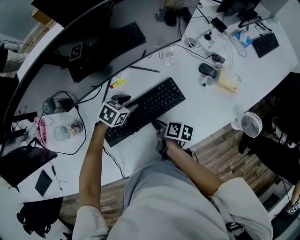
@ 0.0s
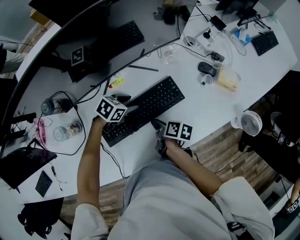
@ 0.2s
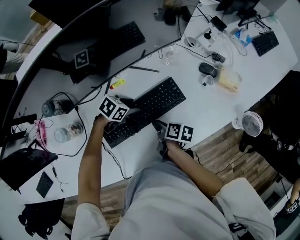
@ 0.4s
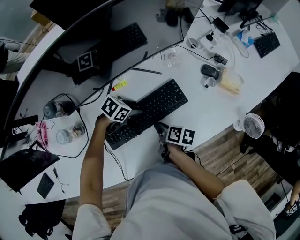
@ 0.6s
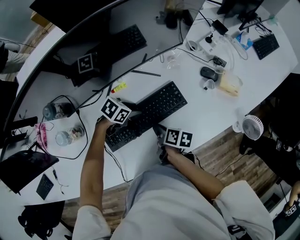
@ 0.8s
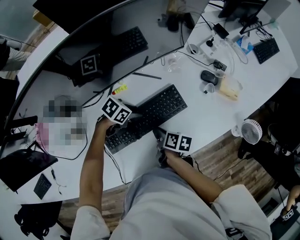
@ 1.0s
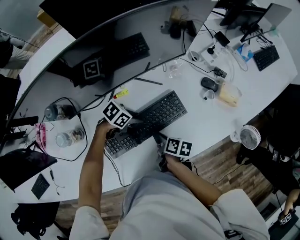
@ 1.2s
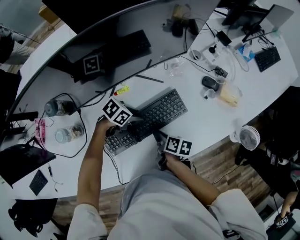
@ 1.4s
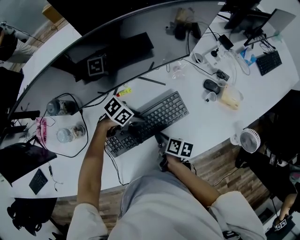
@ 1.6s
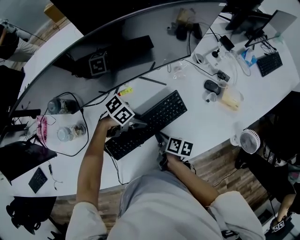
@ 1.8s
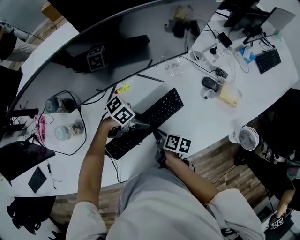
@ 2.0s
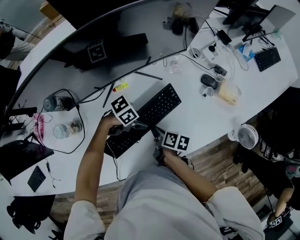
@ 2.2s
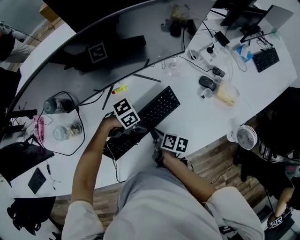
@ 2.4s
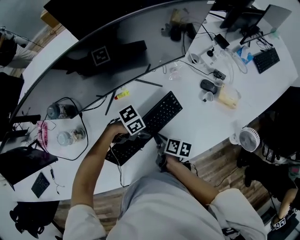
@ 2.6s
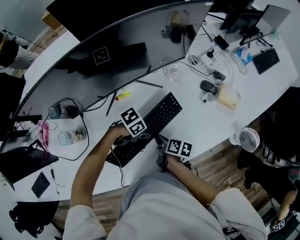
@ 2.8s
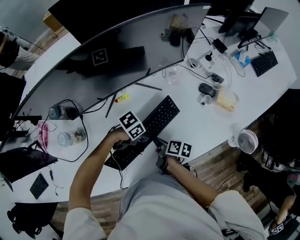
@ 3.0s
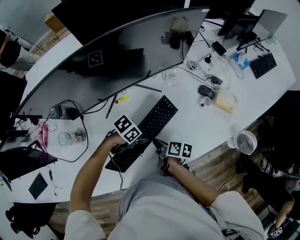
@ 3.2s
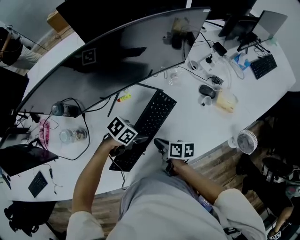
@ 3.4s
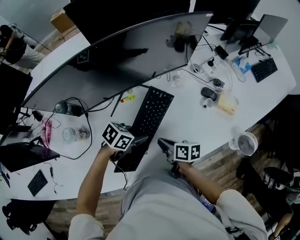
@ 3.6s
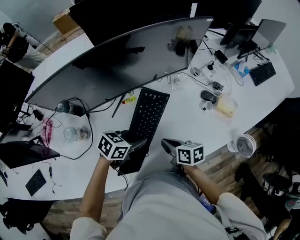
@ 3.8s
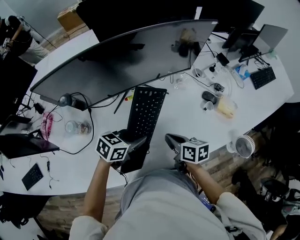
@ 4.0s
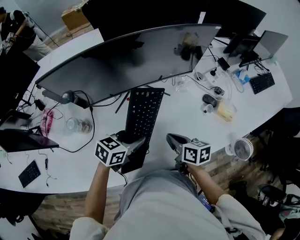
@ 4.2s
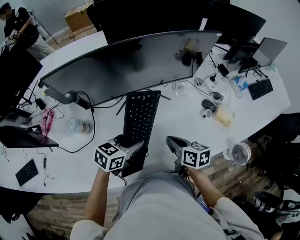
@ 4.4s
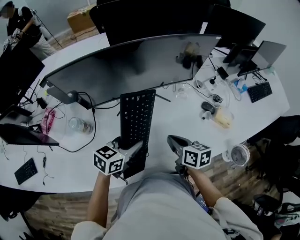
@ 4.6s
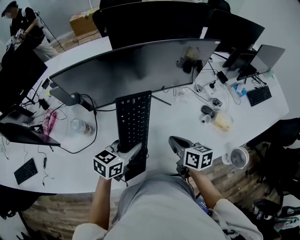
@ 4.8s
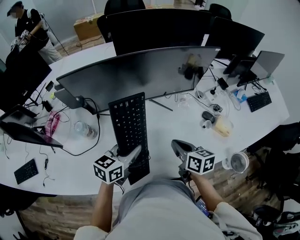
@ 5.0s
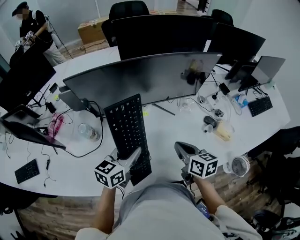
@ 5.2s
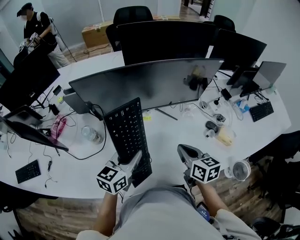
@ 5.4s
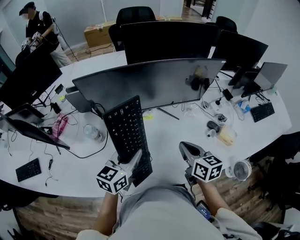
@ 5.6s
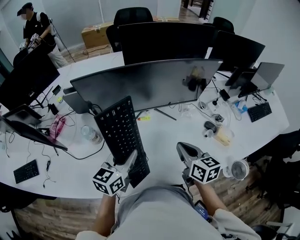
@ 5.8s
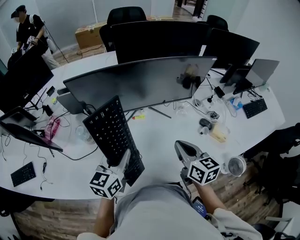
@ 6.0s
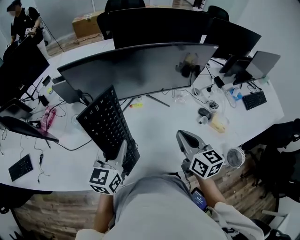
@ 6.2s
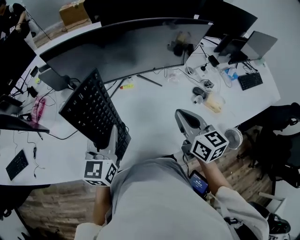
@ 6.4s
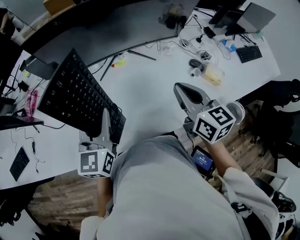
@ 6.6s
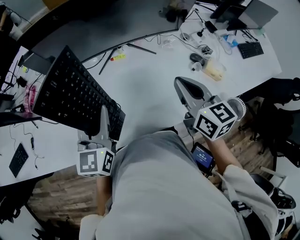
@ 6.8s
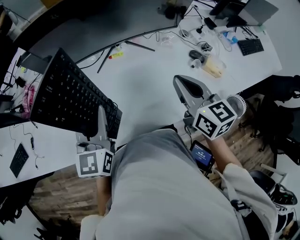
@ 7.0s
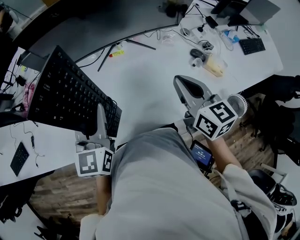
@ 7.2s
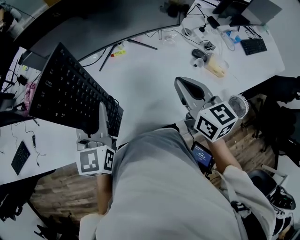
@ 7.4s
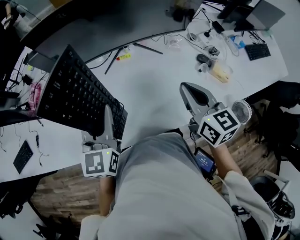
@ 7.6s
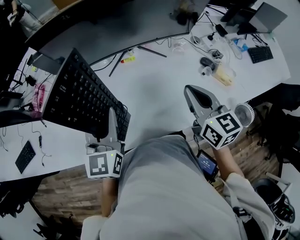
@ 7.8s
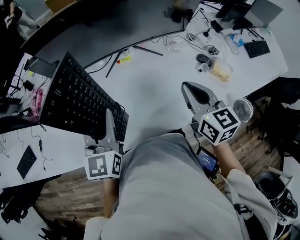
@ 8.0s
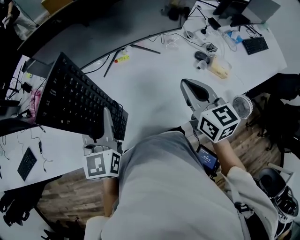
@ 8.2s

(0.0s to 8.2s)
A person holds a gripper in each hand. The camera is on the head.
0.0s - 1.6s: The left gripper changes its angle by approximately 30 degrees.
1.6s - 3.2s: The left gripper shifts by roughly 10 cm.
3.2s - 5.0s: The two grippers go some 20 cm upward. The right gripper rolls counterclockwise, seen from behind, by approximately 40 degrees. The left gripper changes its angle by approximately 70 degrees.
5.0s - 6.6s: The right gripper is displaced upward by some 10 cm, and rotates roughly 20 degrees. Meanwhile the left gripper shifts approximately 10 cm to the left and upward, and turns by roughly 30 degrees.
6.6s - 8.2s: The grippers move only a little.

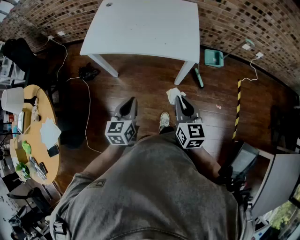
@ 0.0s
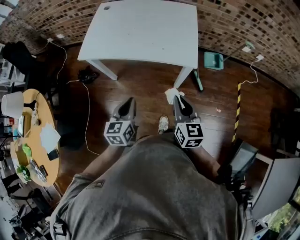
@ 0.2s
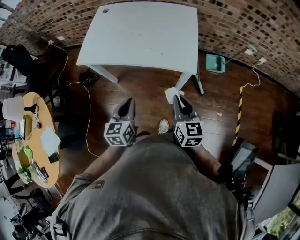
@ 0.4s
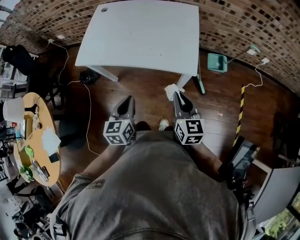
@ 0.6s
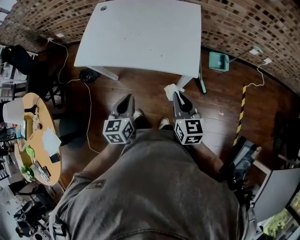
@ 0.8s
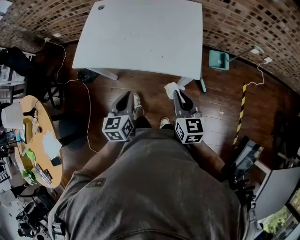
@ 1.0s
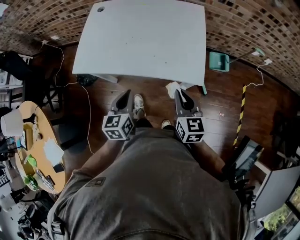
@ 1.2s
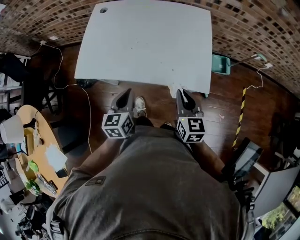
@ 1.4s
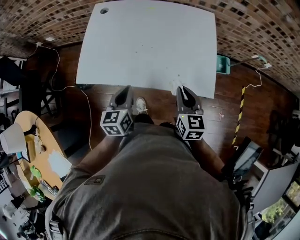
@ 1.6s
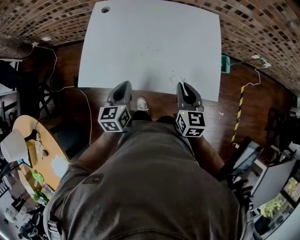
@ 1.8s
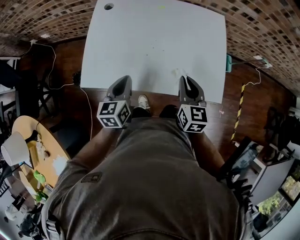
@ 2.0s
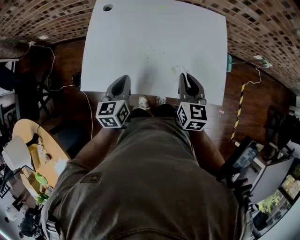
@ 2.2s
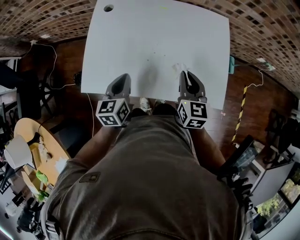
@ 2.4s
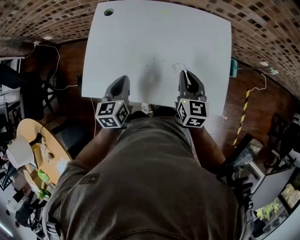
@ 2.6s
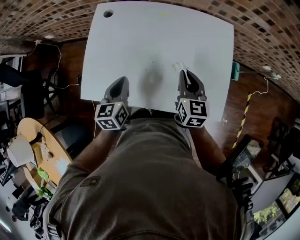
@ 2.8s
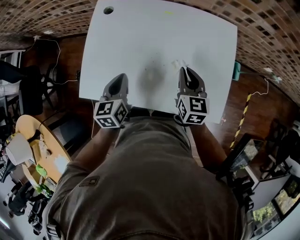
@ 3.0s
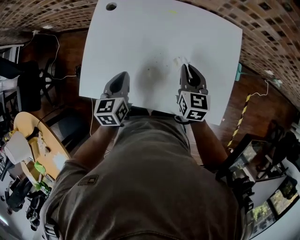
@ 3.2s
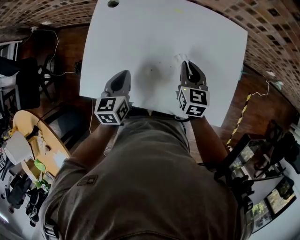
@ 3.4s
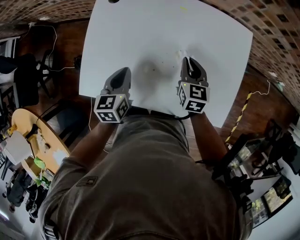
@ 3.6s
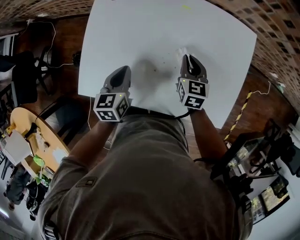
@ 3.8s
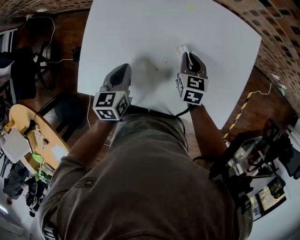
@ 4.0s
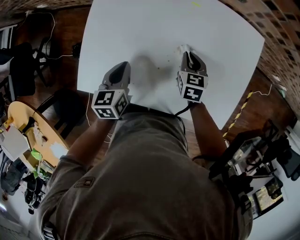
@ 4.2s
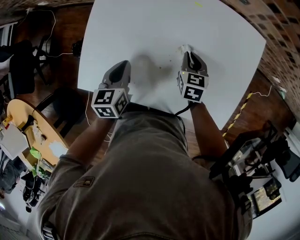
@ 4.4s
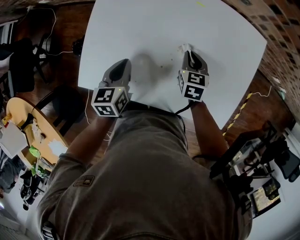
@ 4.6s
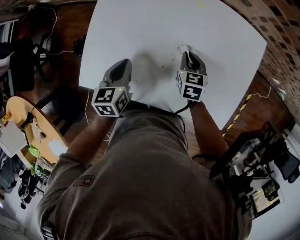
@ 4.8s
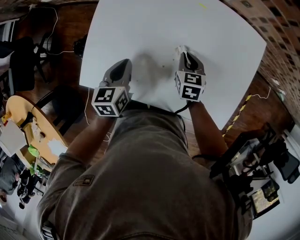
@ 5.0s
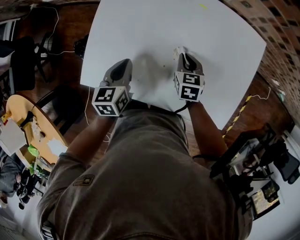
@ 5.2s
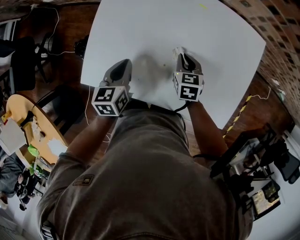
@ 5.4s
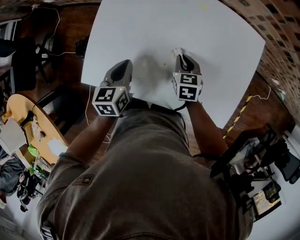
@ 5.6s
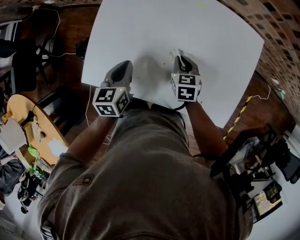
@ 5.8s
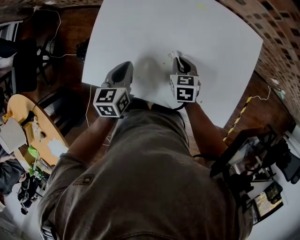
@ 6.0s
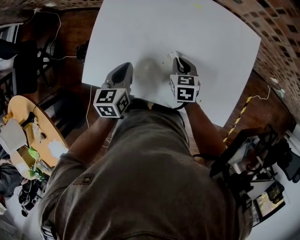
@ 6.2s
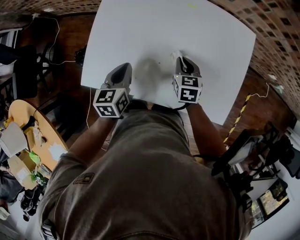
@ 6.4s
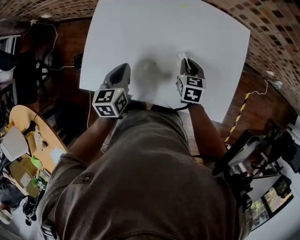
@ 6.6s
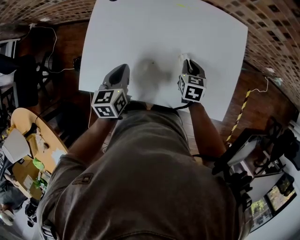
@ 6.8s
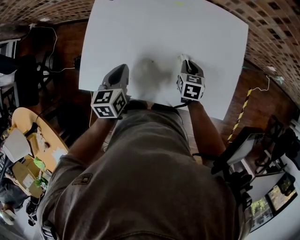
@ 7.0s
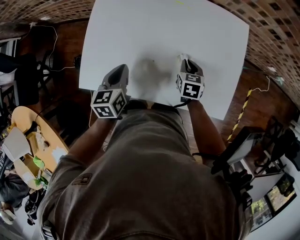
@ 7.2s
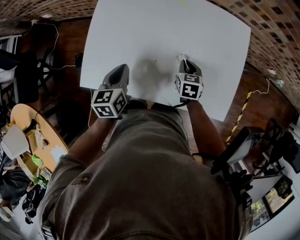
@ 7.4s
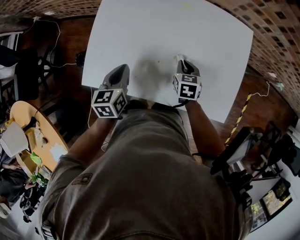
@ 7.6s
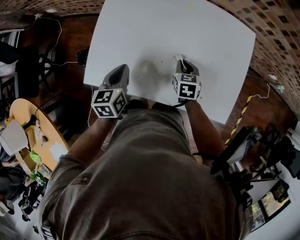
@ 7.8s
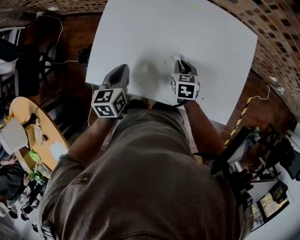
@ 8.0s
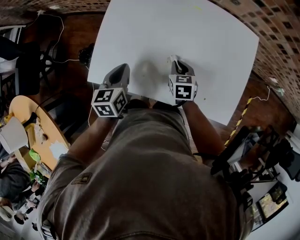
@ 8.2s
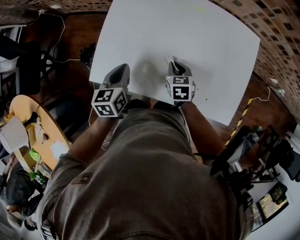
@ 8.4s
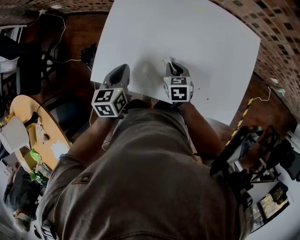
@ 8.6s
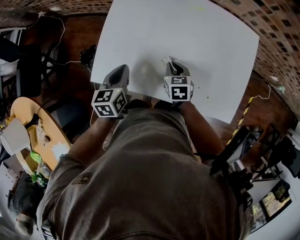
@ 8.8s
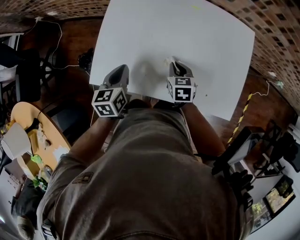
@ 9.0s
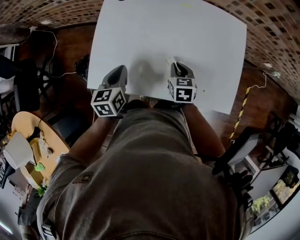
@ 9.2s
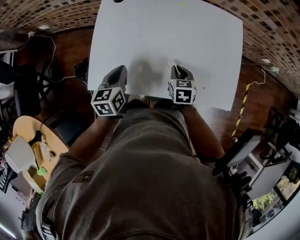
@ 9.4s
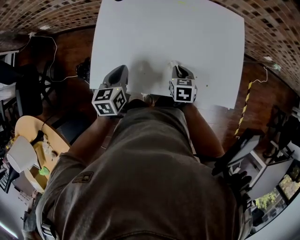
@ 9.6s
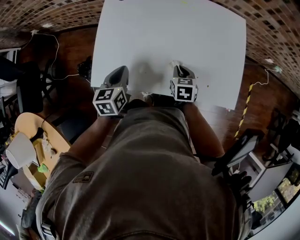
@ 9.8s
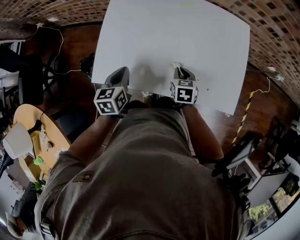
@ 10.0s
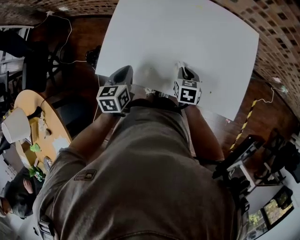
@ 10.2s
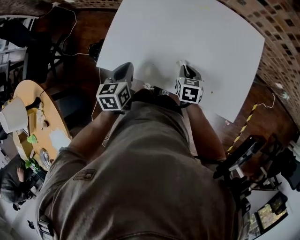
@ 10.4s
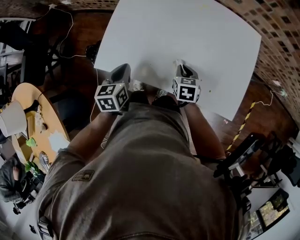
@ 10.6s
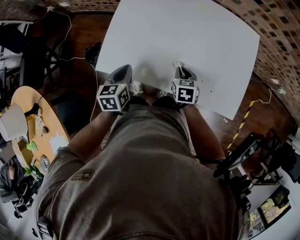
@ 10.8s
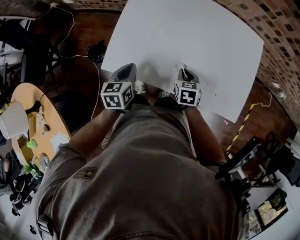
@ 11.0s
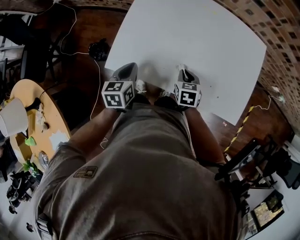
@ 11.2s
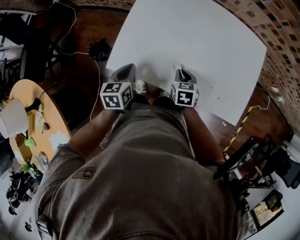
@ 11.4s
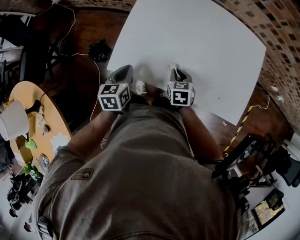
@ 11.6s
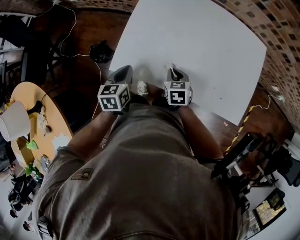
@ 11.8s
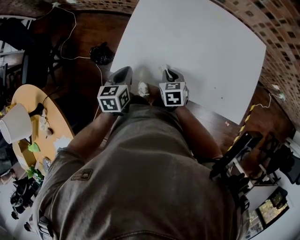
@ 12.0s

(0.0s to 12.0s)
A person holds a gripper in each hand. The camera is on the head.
0.0s - 1.6s: Both grippers travel together forward, about 25 cm.
1.6s - 3.0s: The right gripper moves forward, approximately 20 cm; the left gripper goes about 15 cm forward and to the left.
3.0s - 4.4s: The right gripper goes roughly 15 cm downward and forward, and changes its angle by approximately 20 degrees. Meanwhile the left gripper moves downward, roughly 5 cm.
4.4s - 6.0s: The right gripper goes approximately 5 cm to the left and backward.
6.0s - 7.6s: The right gripper travels to the right by roughly 5 cm.
7.6s - 9.0s: The right gripper goes some 10 cm to the left.
9.0s - 10.4s: The right gripper shifts by roughly 5 cm, while the left gripper shifts about 5 cm backward.
10.4s - 12.0s: The right gripper travels to the left by approximately 15 cm, while the left gripper heads to the left, covering some 10 cm.

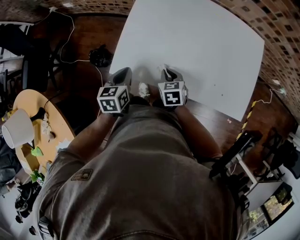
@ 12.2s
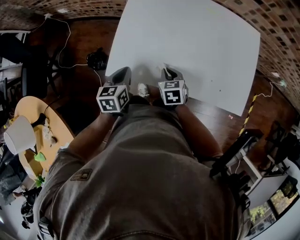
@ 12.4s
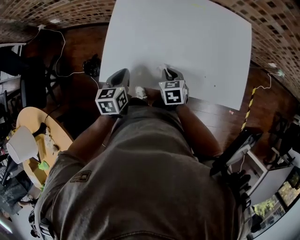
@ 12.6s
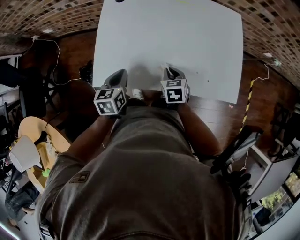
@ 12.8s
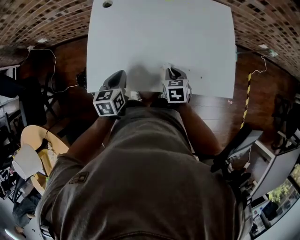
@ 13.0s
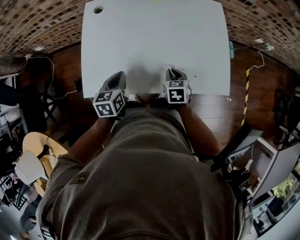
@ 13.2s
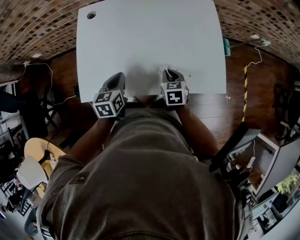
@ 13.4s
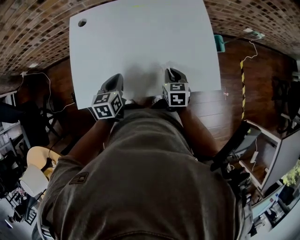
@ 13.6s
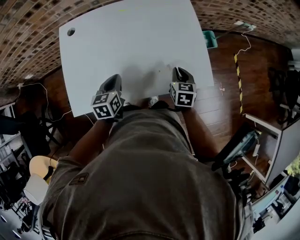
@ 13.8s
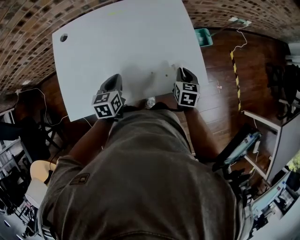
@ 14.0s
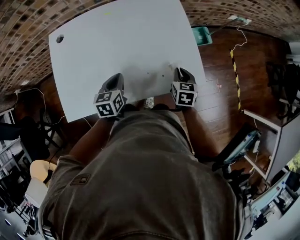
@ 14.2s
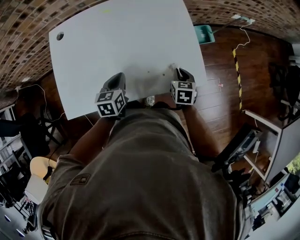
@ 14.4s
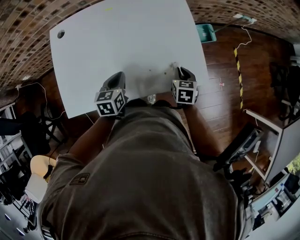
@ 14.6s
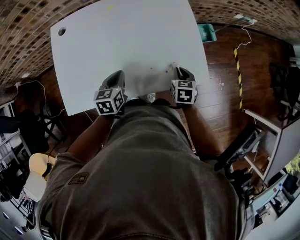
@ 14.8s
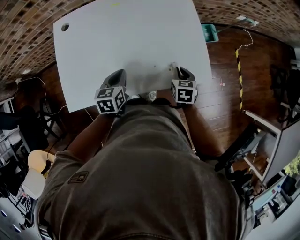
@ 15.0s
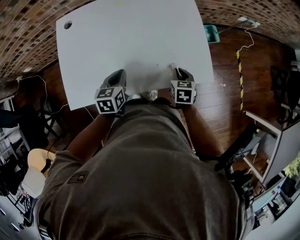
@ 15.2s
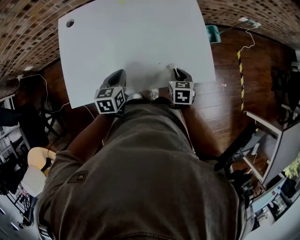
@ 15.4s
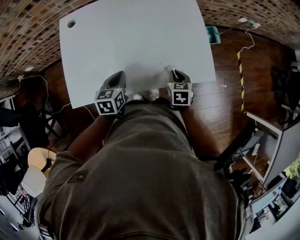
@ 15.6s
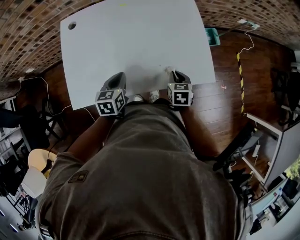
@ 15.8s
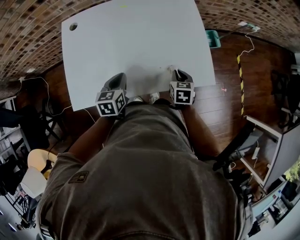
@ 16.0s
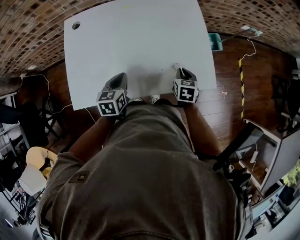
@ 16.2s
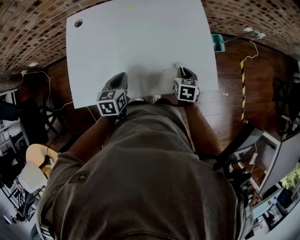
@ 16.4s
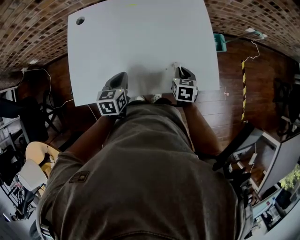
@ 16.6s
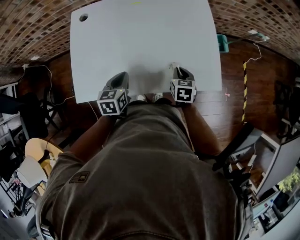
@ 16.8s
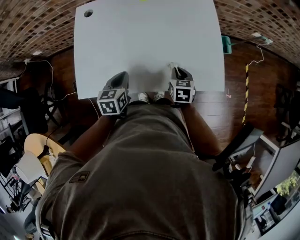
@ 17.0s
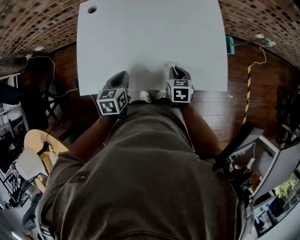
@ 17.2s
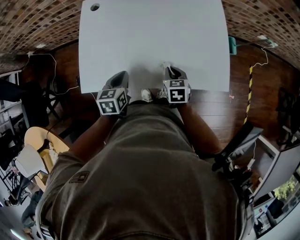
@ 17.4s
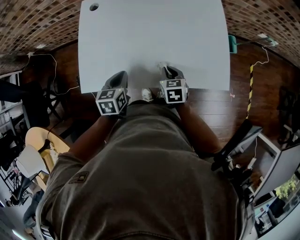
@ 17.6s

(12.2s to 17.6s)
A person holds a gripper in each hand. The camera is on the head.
12.2s - 13.6s: The left gripper changes place by roughly 20 cm, and rotates approximately 20 degrees; the right gripper changes place by about 25 cm, and changes its angle by roughly 30 degrees.
13.6s - 15.0s: The two grippers go roughly 10 cm to the right.
15.0s - 16.2s: There are only small adjustments of the grippers.
16.2s - 17.6s: The right gripper moves to the left, roughly 15 cm; the left gripper shifts some 5 cm to the left.
